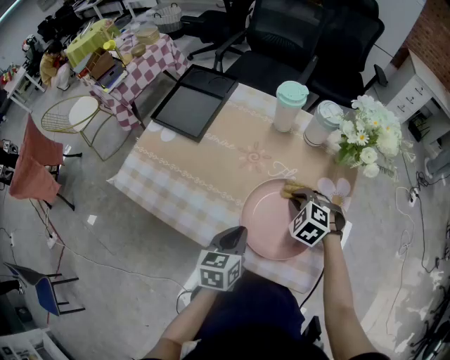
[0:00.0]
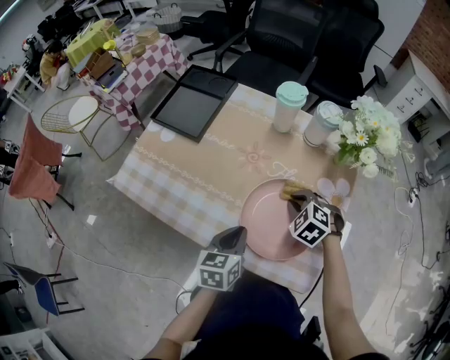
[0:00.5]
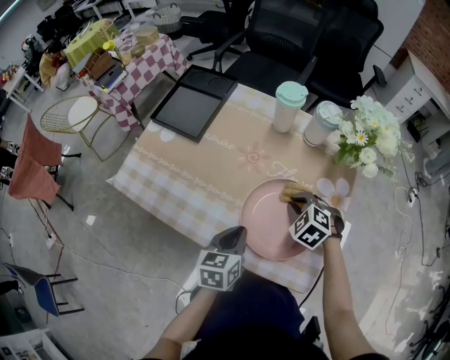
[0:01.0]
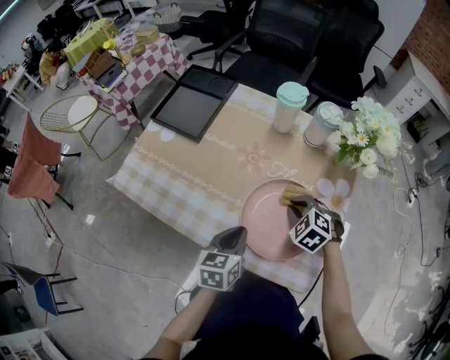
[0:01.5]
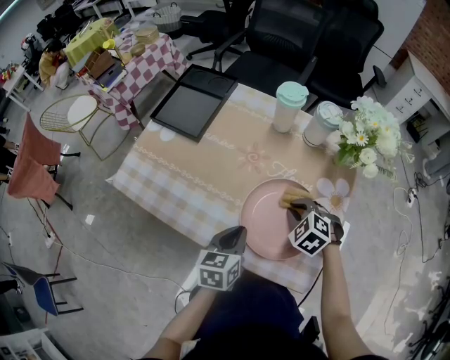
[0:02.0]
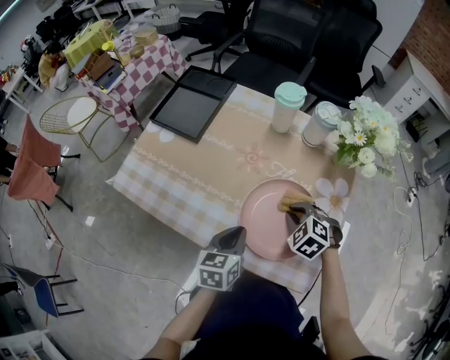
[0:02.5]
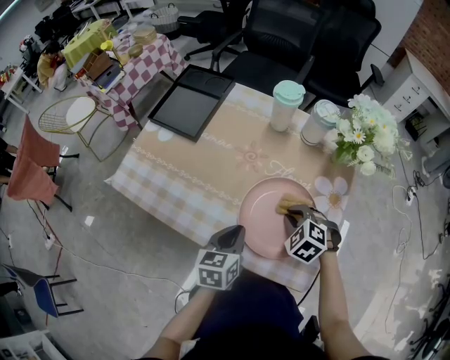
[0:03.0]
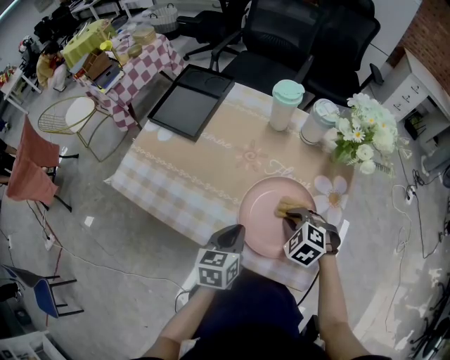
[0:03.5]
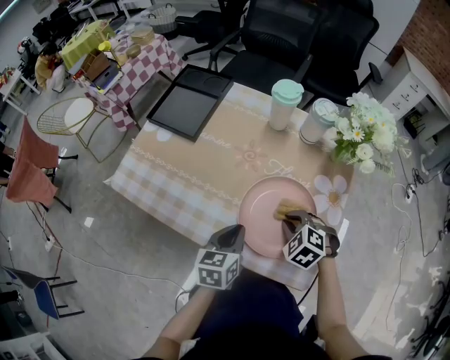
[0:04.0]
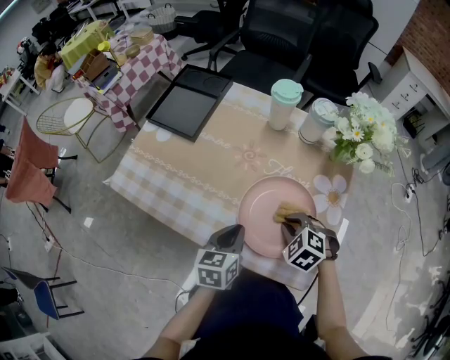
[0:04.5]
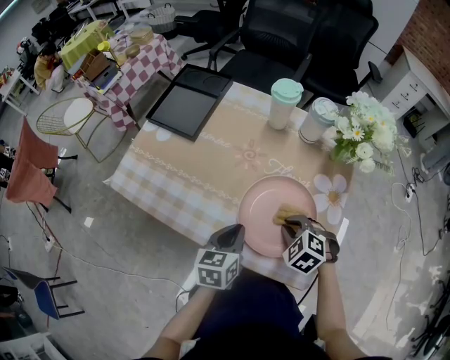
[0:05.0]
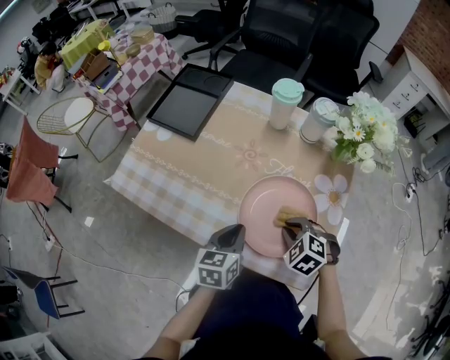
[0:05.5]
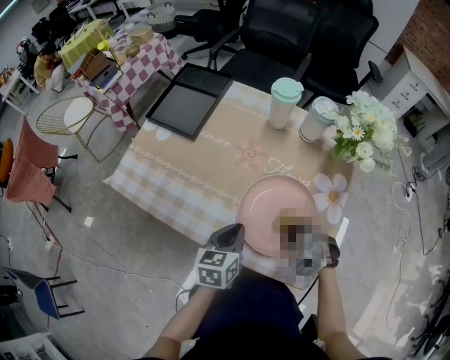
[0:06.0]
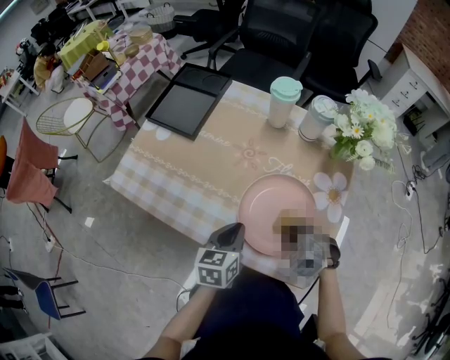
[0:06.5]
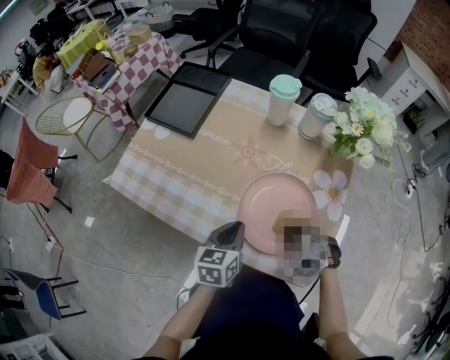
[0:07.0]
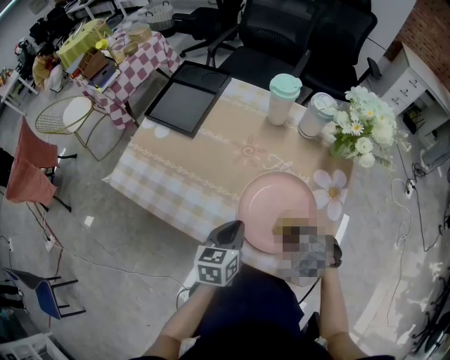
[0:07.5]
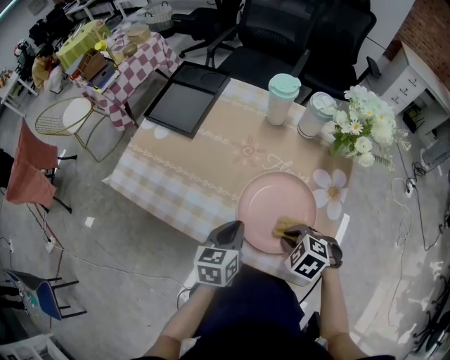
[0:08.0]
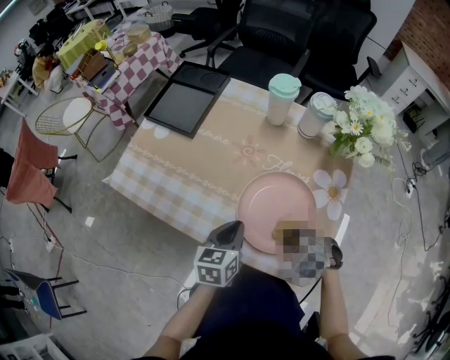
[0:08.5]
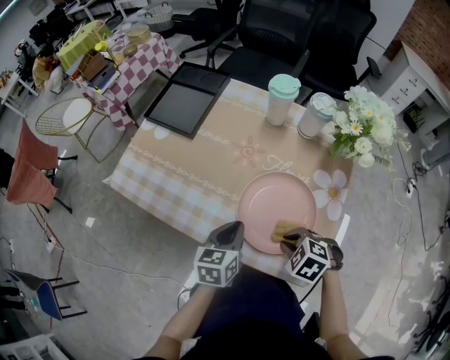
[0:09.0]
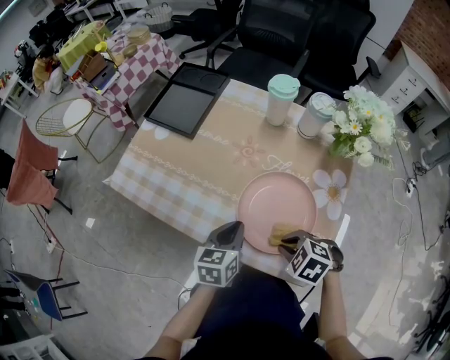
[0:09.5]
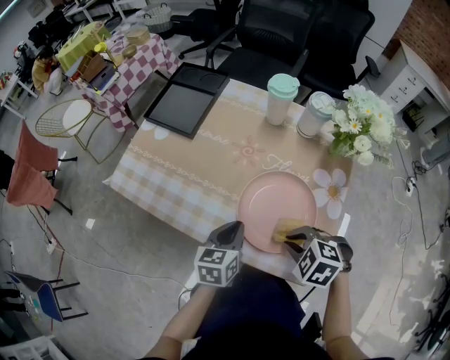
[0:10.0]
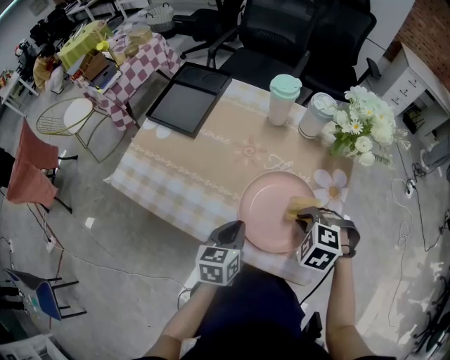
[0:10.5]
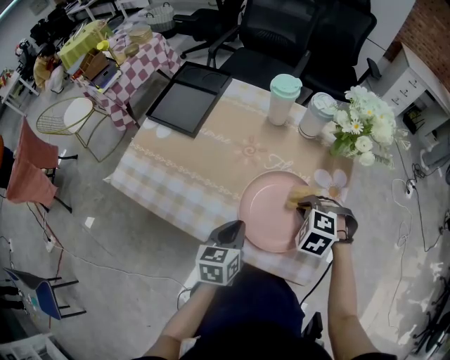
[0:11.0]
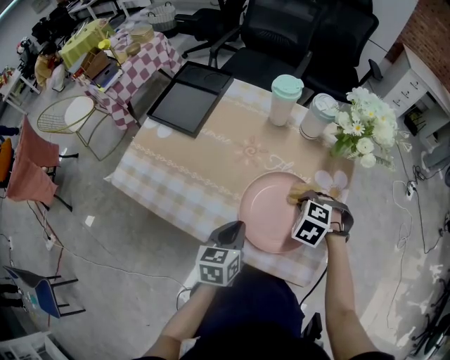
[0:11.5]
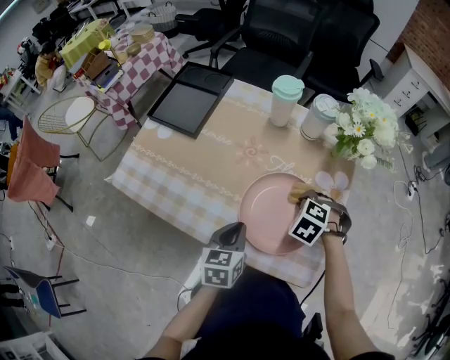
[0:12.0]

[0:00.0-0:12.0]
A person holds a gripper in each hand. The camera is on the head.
0.0 to 2.0 s: The grippers stay close to where they were, moving slightly.
2.0 to 4.0 s: The grippers stay close to where they were, moving slightly.
4.0 to 6.0 s: There are only small adjustments of the grippers.
6.0 to 8.0 s: The grippers make only small movements.
8.0 to 10.0 s: The right gripper goes roughly 5 cm upward.
10.0 to 12.0 s: The right gripper ends up about 15 cm from where it was, and turns by some 20 degrees.

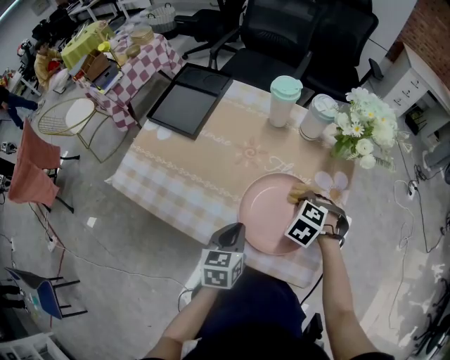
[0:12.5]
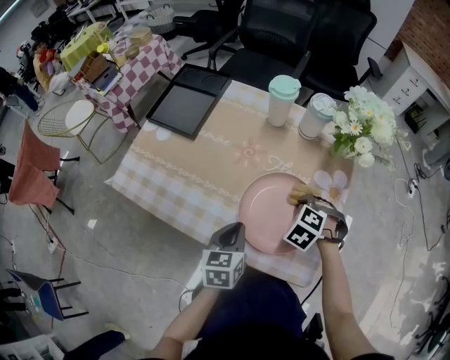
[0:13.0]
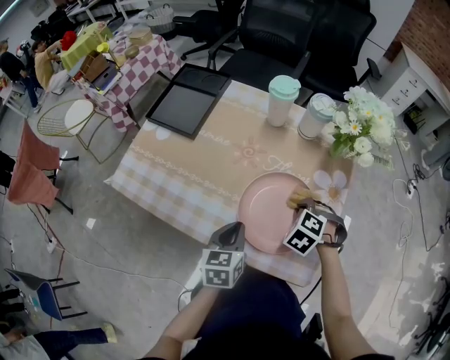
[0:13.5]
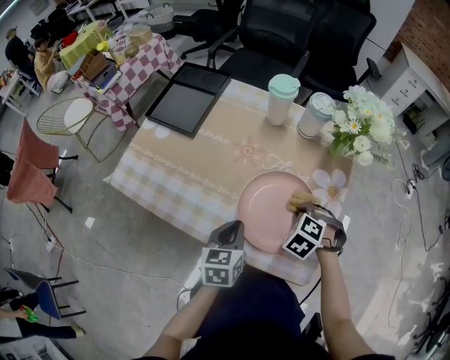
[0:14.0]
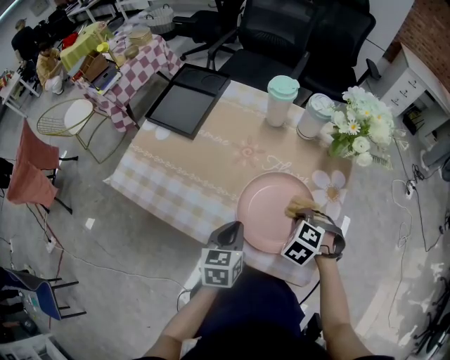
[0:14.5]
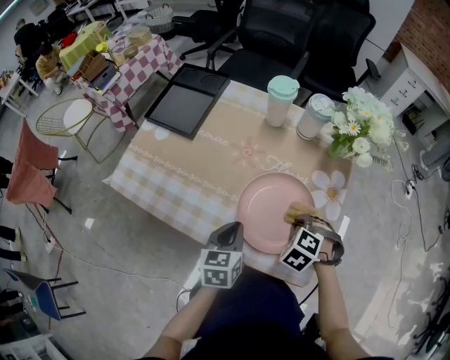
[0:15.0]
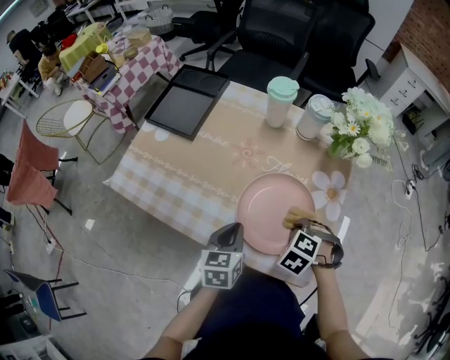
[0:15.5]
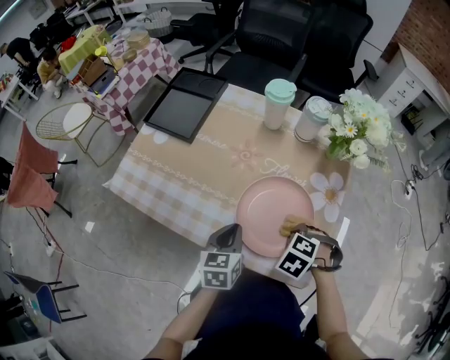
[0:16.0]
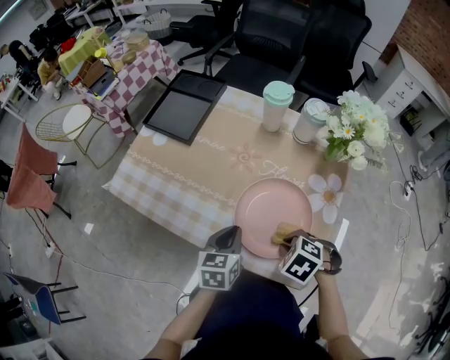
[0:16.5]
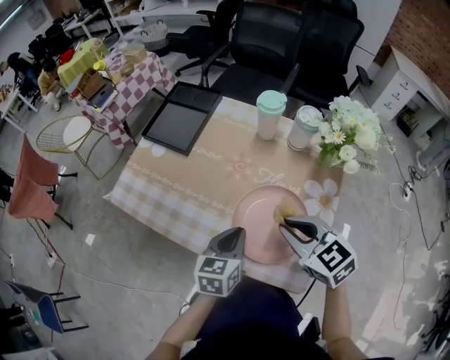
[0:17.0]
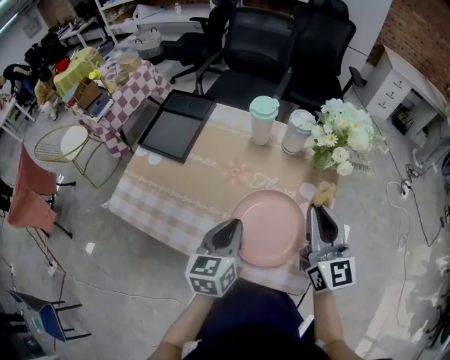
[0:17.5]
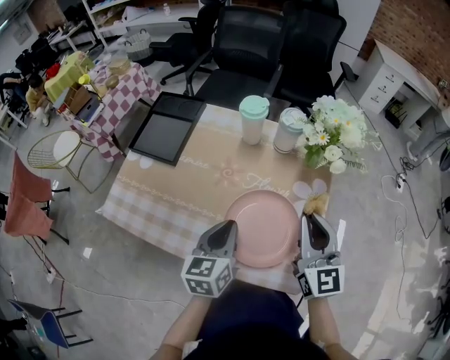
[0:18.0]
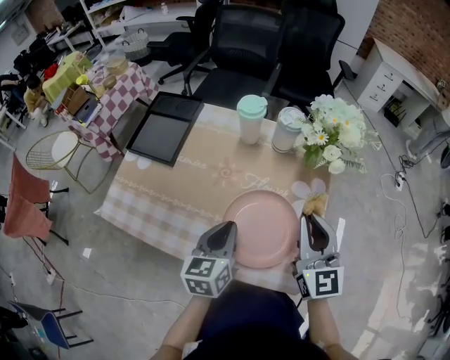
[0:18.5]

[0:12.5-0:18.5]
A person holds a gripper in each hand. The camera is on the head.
12.5 to 14.5 s: The right gripper moves about 5 cm.
14.5 to 16.5 s: The right gripper ends up some 10 cm from where it was, and swivels some 20 degrees.
16.5 to 18.5 s: The right gripper is displaced upward by about 20 cm, and tips its fingers upward by roughly 70 degrees. The left gripper travels upward by approximately 10 cm.

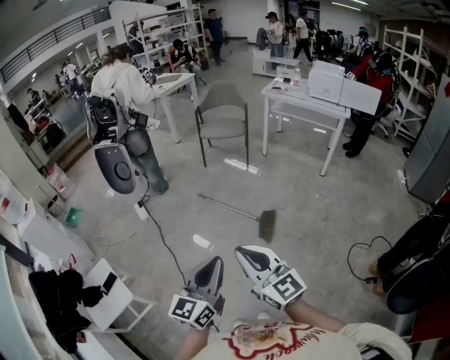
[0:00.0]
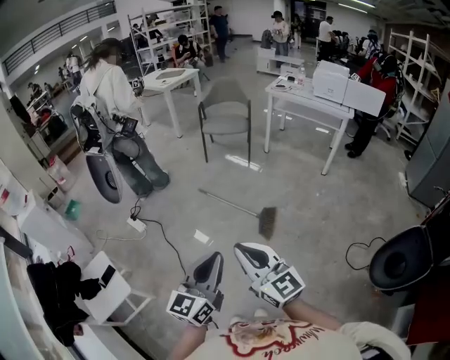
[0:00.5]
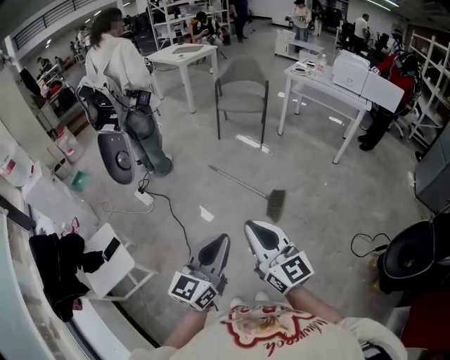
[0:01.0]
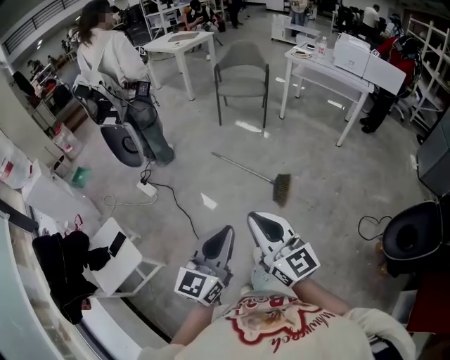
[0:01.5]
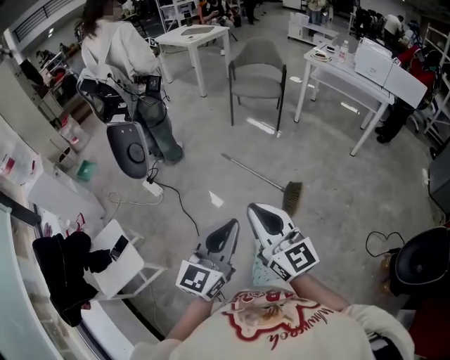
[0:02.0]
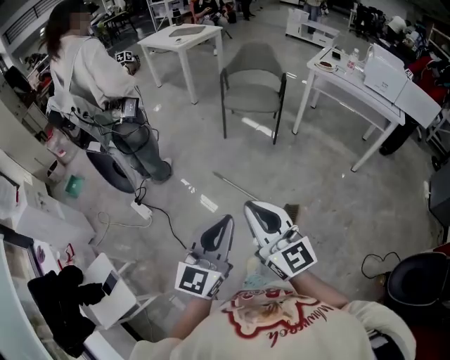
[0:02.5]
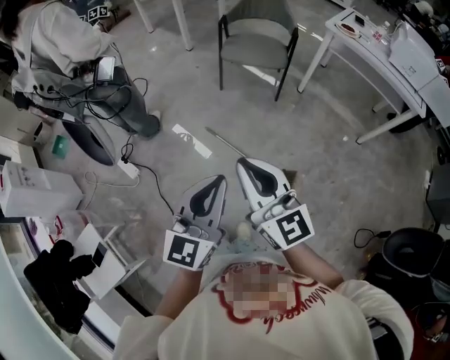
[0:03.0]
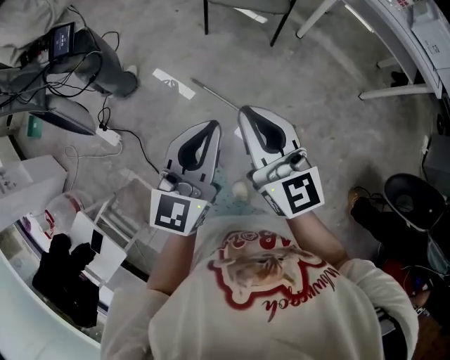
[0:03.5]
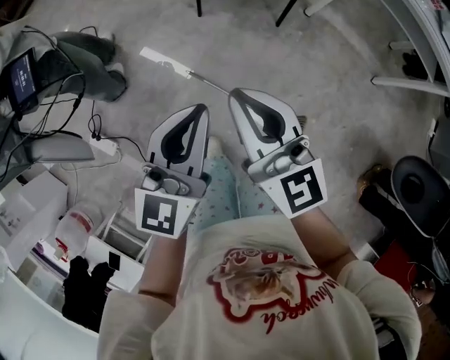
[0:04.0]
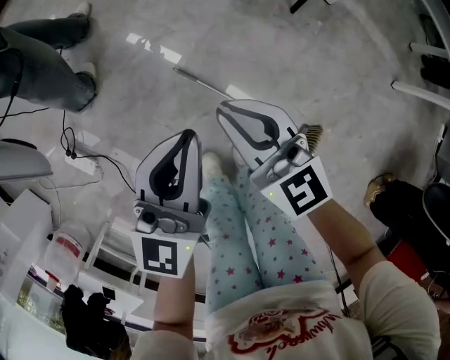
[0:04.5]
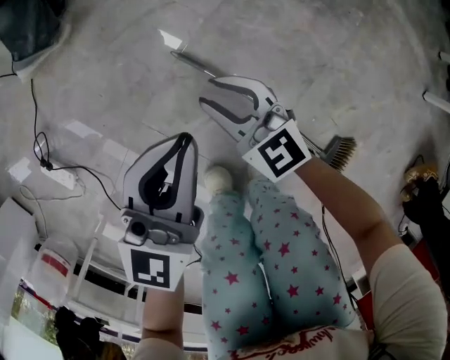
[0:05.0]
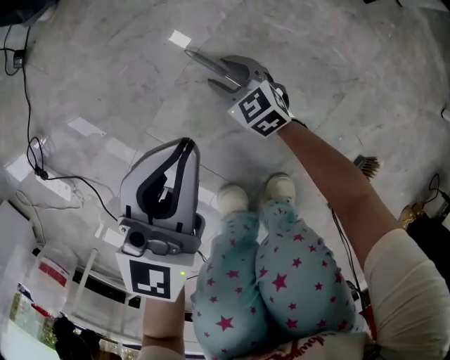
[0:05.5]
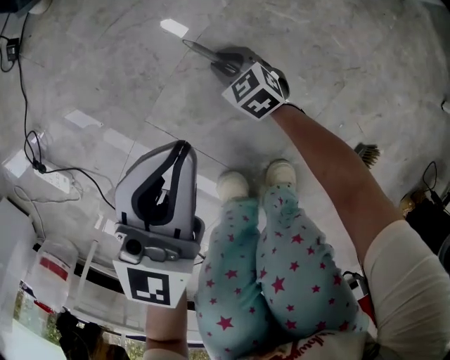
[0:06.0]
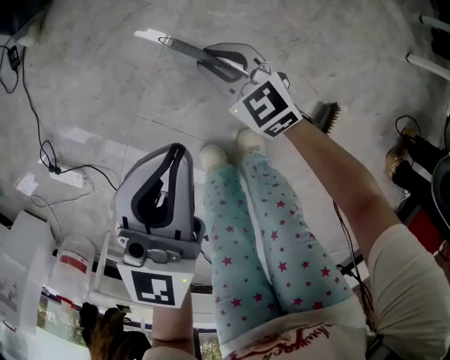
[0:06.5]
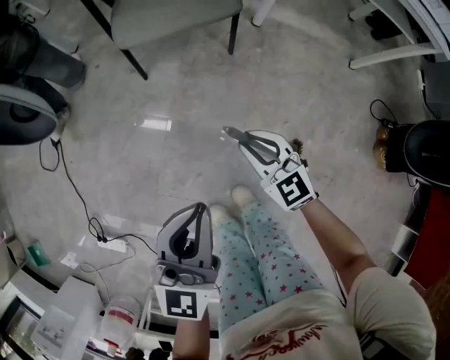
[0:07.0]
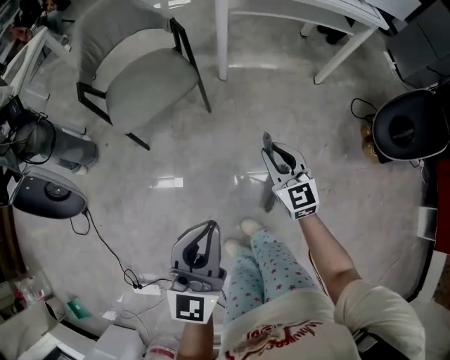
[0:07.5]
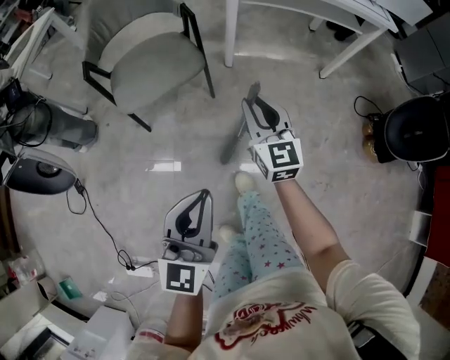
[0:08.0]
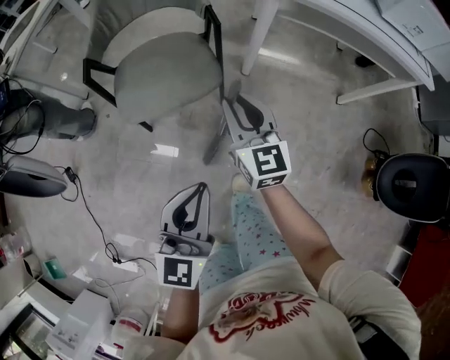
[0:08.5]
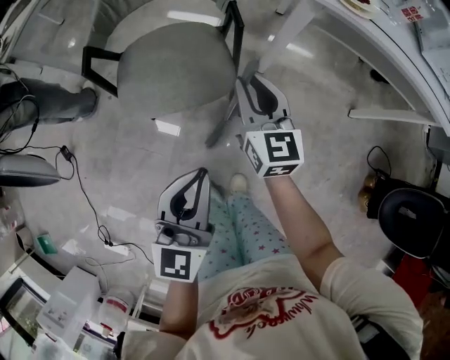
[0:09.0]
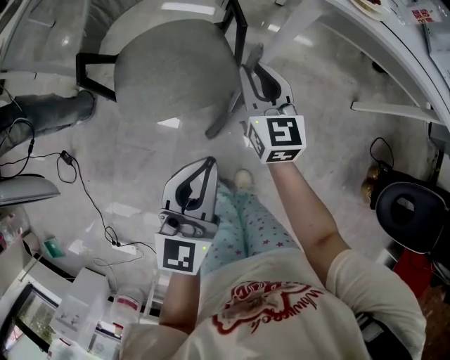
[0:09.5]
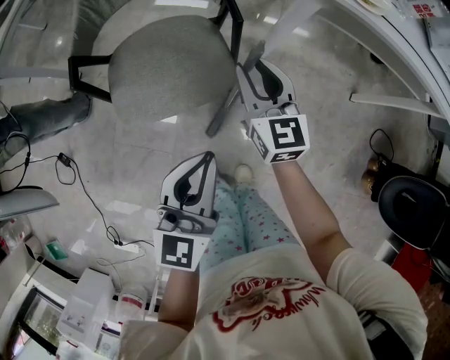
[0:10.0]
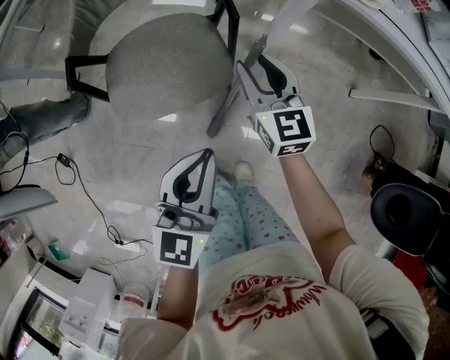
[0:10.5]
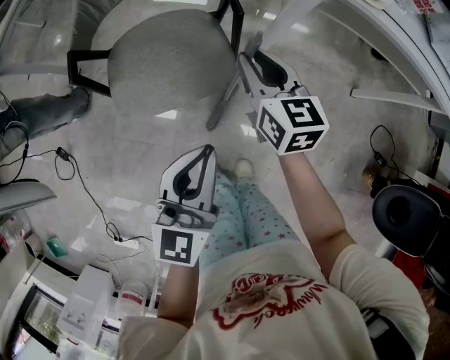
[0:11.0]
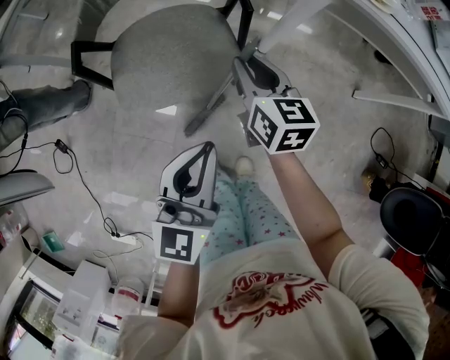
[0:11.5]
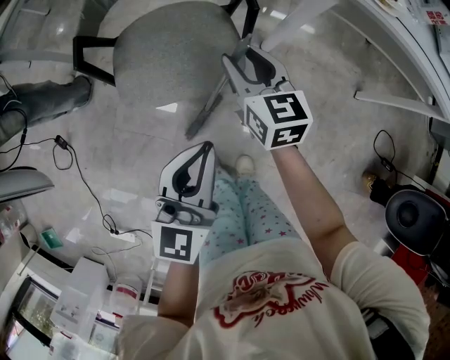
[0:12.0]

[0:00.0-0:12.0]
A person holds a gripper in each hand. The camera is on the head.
0.0 to 2.0 s: Both grippers move forward and to the left, about 10 cm.
2.0 to 4.0 s: The pair of grippers is taken forward, some 70 cm.
4.0 to 6.0 s: The right gripper is displaced downward by about 80 cm, angles its fingers downward, by some 50 degrees, and opens its fingers. Meanwhile the left gripper travels downward by about 50 cm.
6.0 to 8.0 s: The left gripper goes approximately 50 cm upward, and changes its angle by approximately 30 degrees. The right gripper moves upward, approximately 70 cm, and points its fingers roughly 40 degrees further upward.
8.0 to 10.0 s: Both grippers move forward, about 35 cm.
10.0 to 12.0 s: The right gripper goes some 5 cm to the left.
